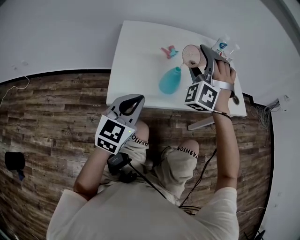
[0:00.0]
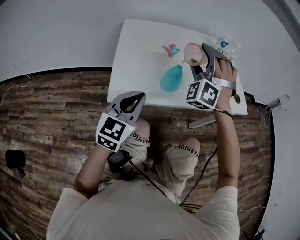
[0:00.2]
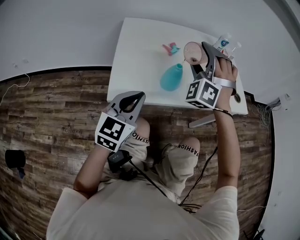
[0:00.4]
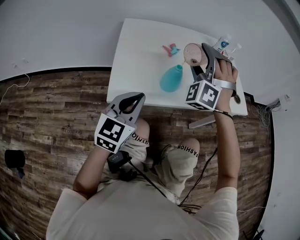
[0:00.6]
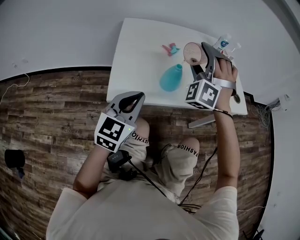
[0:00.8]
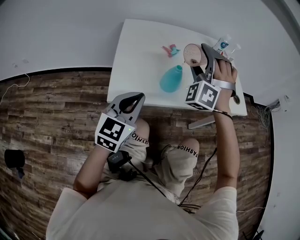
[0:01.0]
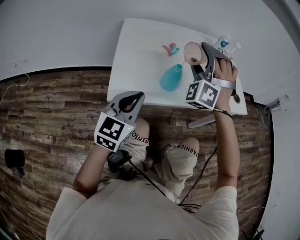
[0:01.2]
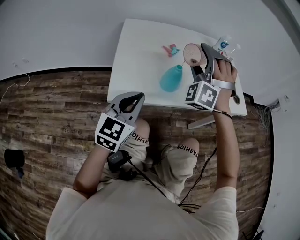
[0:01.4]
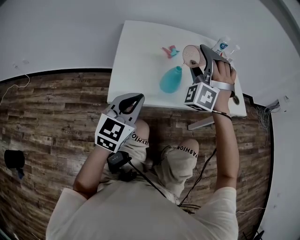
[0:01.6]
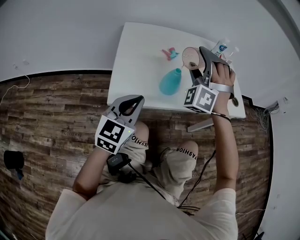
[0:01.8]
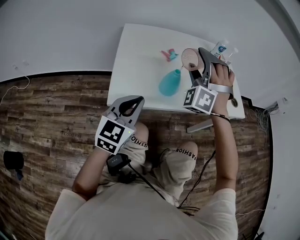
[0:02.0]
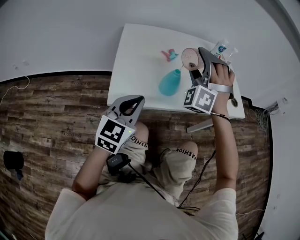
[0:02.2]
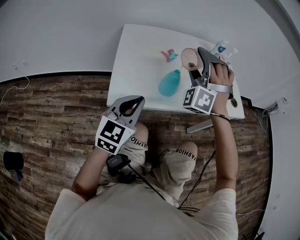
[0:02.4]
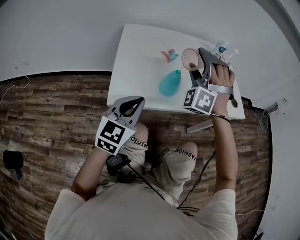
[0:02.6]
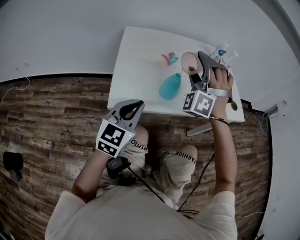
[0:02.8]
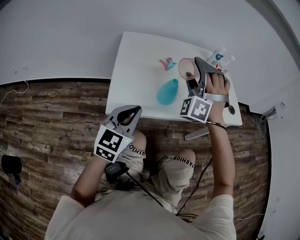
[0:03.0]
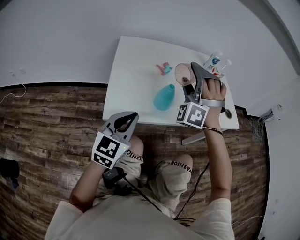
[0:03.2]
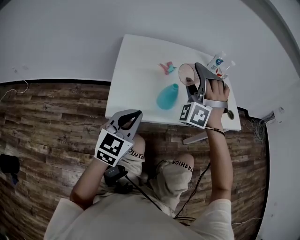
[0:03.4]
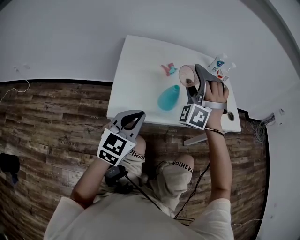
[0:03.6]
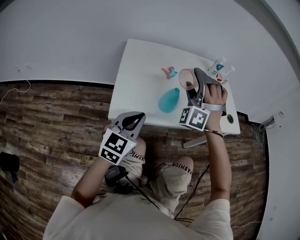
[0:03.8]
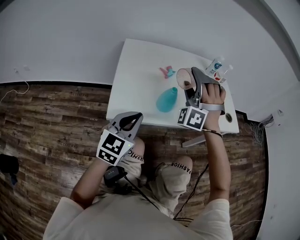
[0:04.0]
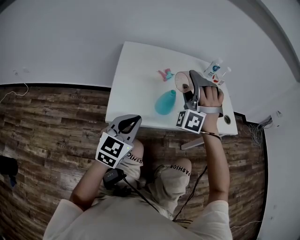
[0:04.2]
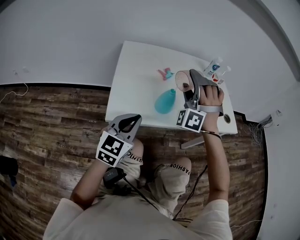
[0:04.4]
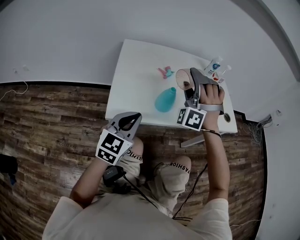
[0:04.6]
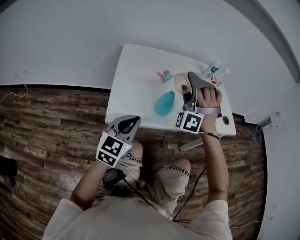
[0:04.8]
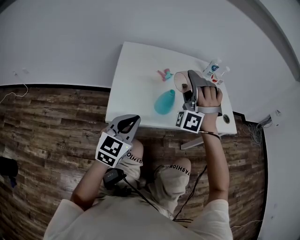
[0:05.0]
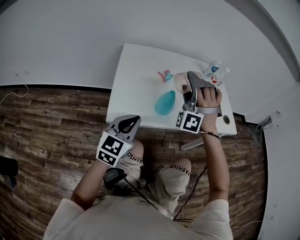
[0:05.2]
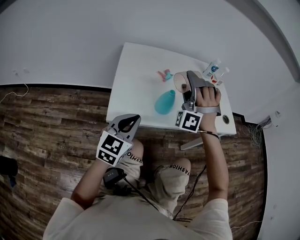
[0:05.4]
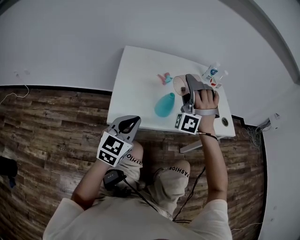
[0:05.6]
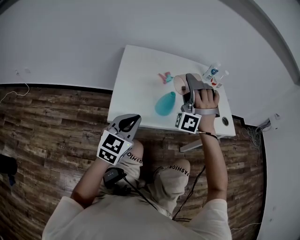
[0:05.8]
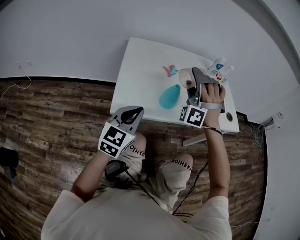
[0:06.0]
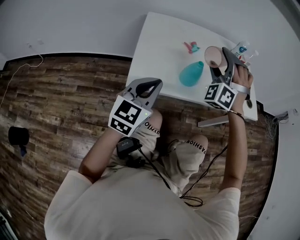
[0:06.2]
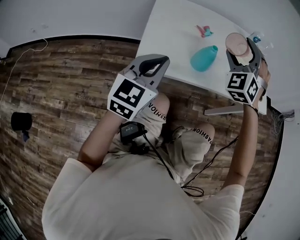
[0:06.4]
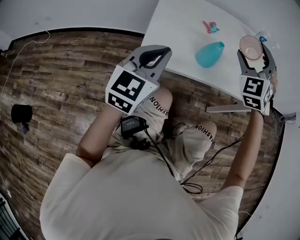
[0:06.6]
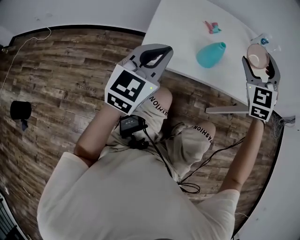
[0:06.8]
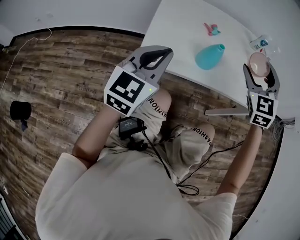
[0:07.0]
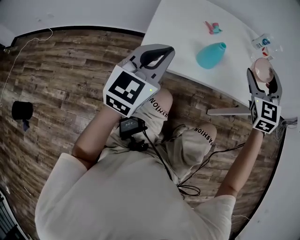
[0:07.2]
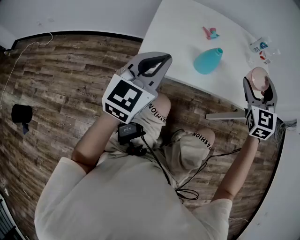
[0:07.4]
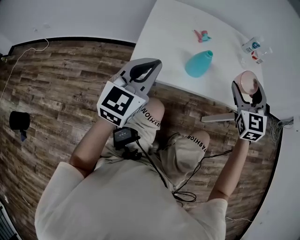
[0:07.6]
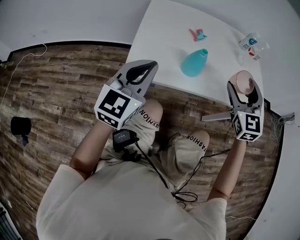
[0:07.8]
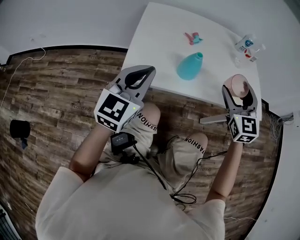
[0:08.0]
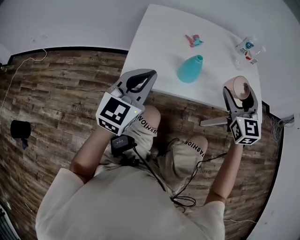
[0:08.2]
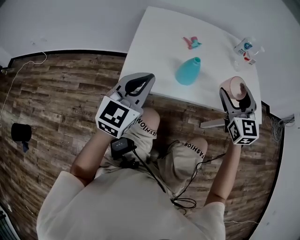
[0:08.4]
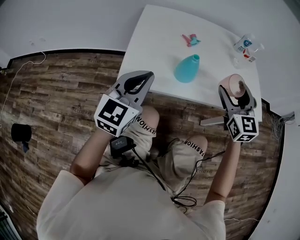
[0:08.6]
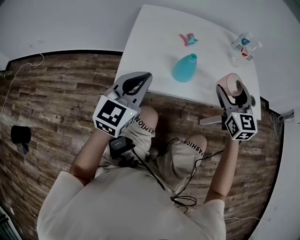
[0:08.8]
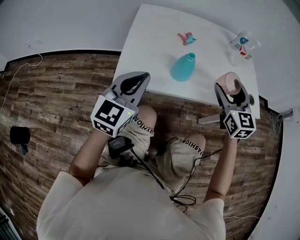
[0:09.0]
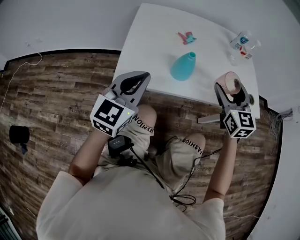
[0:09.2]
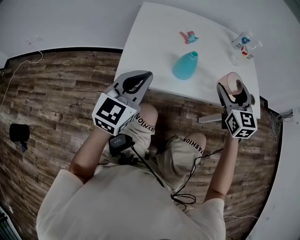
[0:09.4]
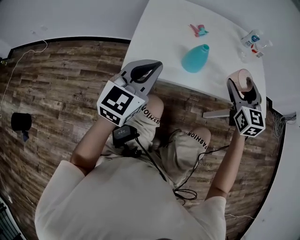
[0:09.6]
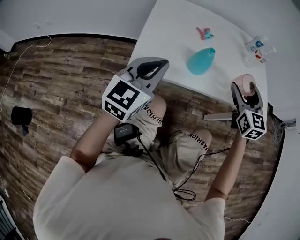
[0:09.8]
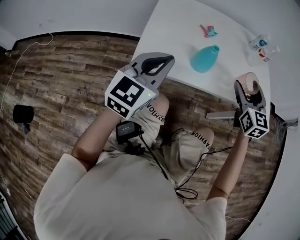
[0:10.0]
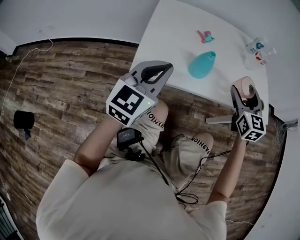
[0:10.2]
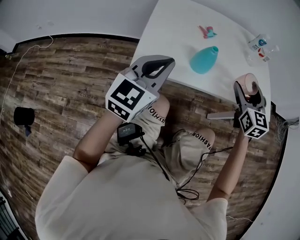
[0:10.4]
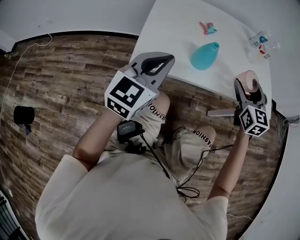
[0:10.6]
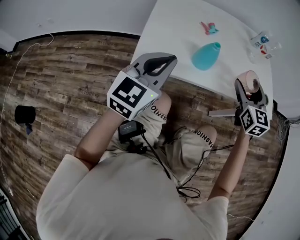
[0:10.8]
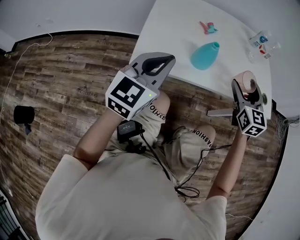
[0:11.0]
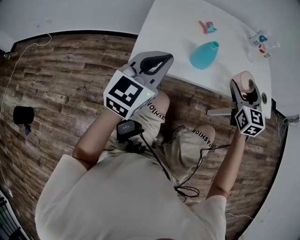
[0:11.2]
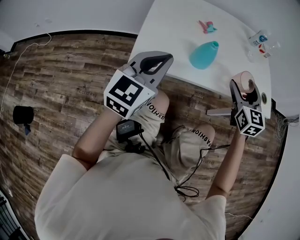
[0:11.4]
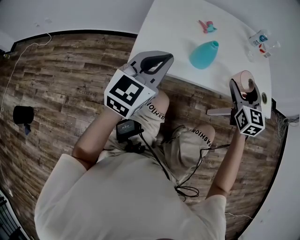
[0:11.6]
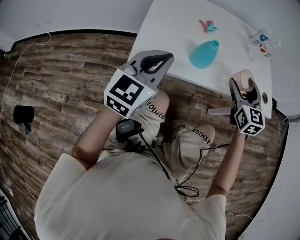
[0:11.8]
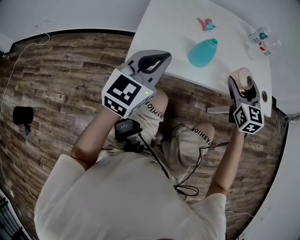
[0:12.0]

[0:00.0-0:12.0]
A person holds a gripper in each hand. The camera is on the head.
0:00.0 to 0:01.6: Neither gripper changes place.
0:01.6 to 0:03.0: Both grippers stay put.
0:03.0 to 0:06.0: The grippers stay close to where they were, moving slightly.
0:06.0 to 0:07.6: The right gripper travels to the right by some 15 cm, and twists approximately 70 degrees clockwise, seen from behind.
0:07.6 to 0:10.4: There are only small adjustments of the grippers.
0:10.4 to 0:12.0: The grippers stay close to where they were, moving slightly.

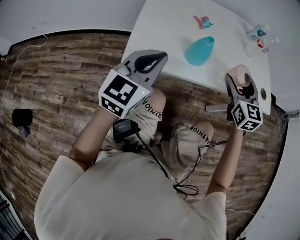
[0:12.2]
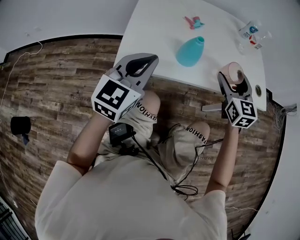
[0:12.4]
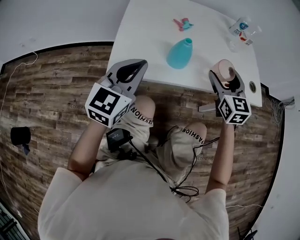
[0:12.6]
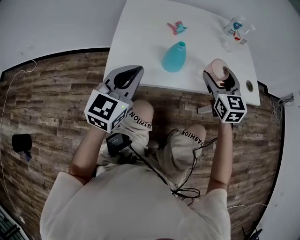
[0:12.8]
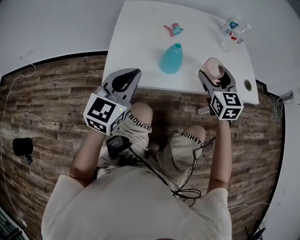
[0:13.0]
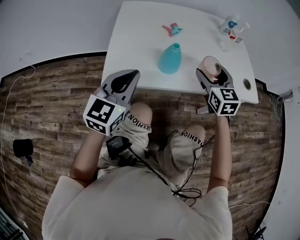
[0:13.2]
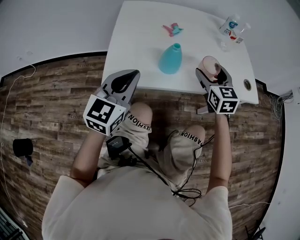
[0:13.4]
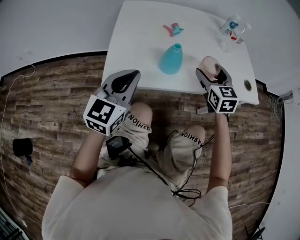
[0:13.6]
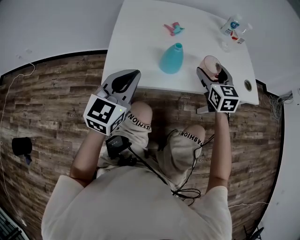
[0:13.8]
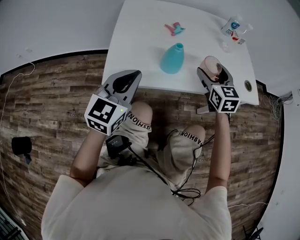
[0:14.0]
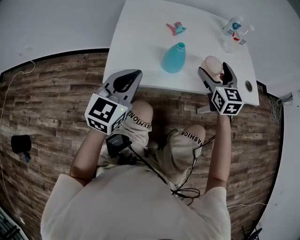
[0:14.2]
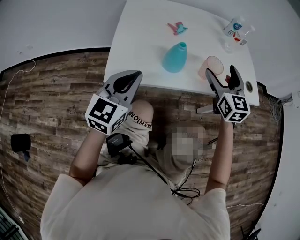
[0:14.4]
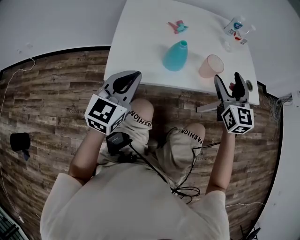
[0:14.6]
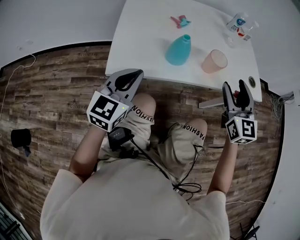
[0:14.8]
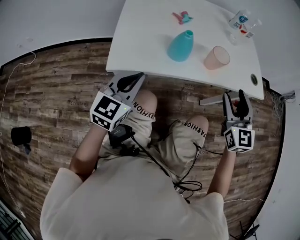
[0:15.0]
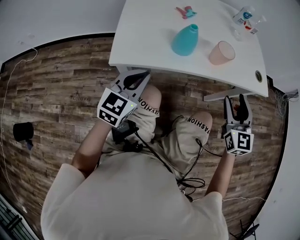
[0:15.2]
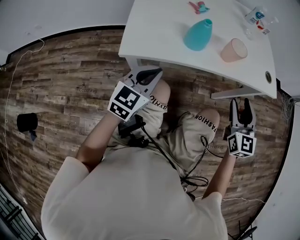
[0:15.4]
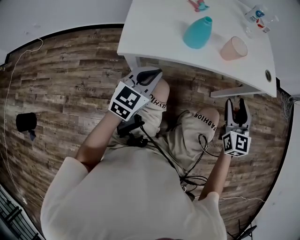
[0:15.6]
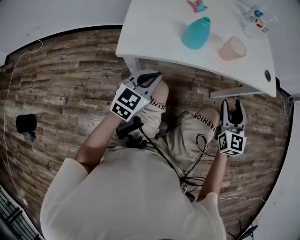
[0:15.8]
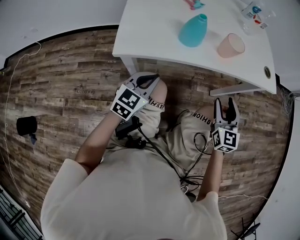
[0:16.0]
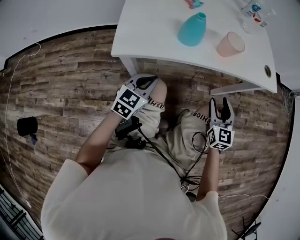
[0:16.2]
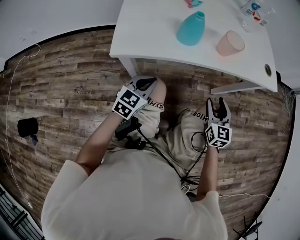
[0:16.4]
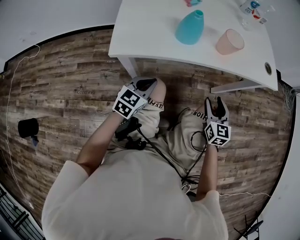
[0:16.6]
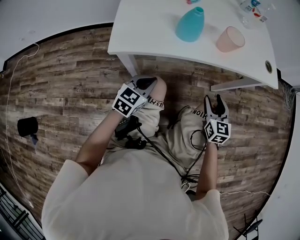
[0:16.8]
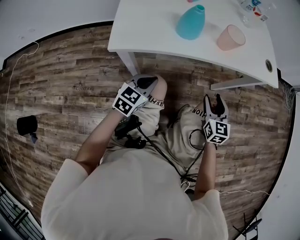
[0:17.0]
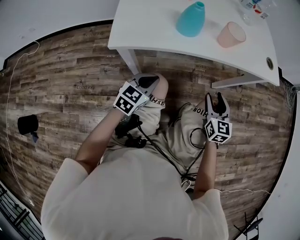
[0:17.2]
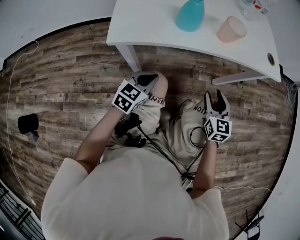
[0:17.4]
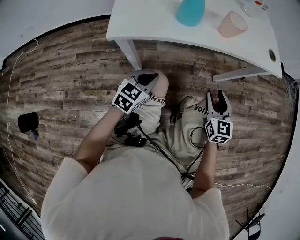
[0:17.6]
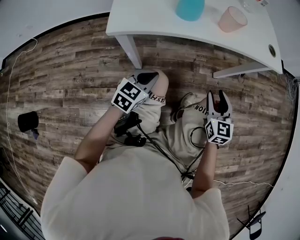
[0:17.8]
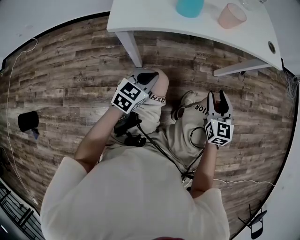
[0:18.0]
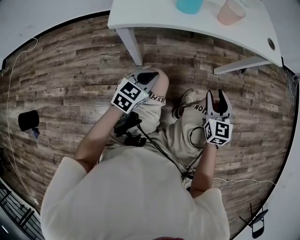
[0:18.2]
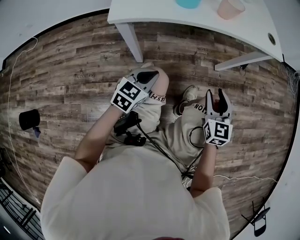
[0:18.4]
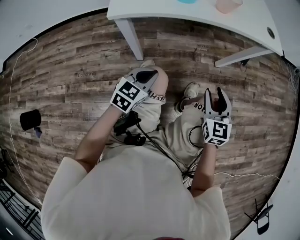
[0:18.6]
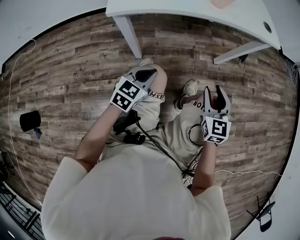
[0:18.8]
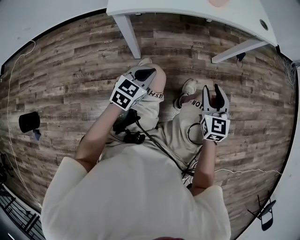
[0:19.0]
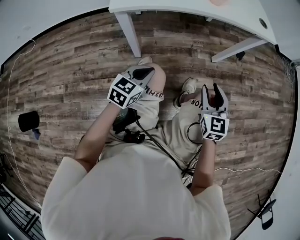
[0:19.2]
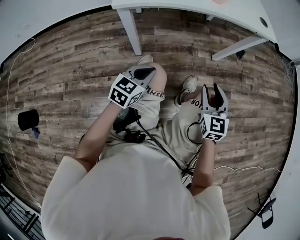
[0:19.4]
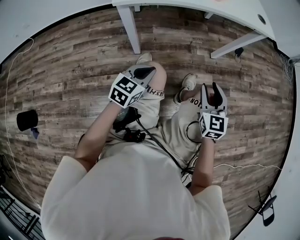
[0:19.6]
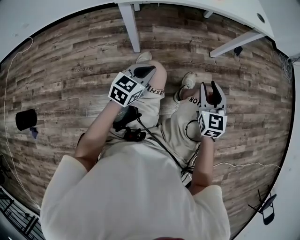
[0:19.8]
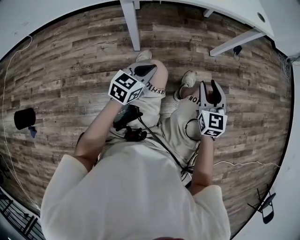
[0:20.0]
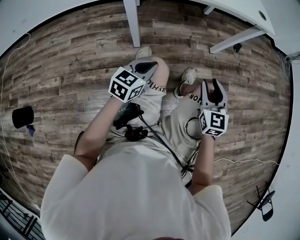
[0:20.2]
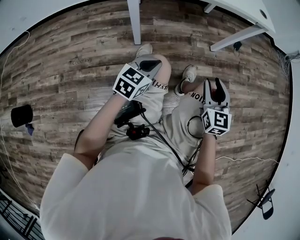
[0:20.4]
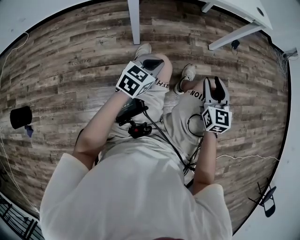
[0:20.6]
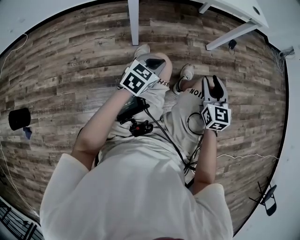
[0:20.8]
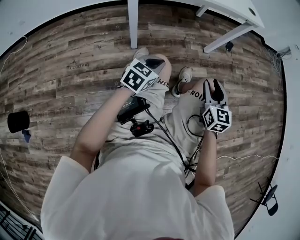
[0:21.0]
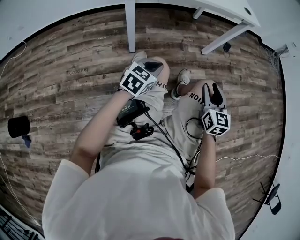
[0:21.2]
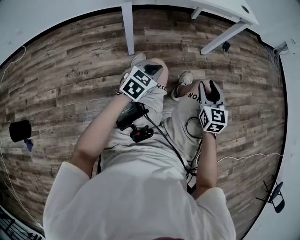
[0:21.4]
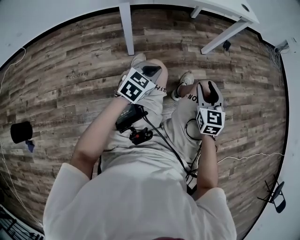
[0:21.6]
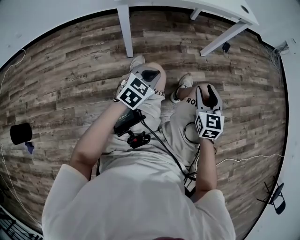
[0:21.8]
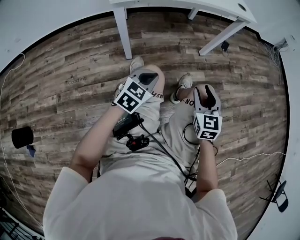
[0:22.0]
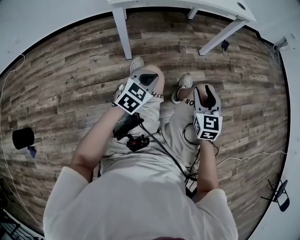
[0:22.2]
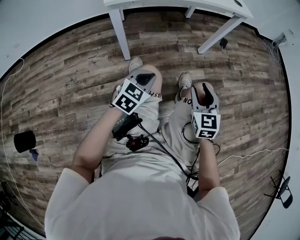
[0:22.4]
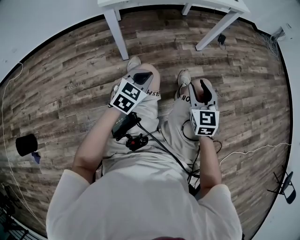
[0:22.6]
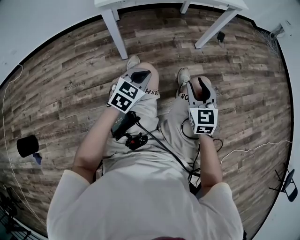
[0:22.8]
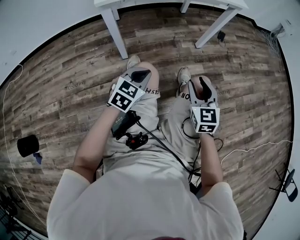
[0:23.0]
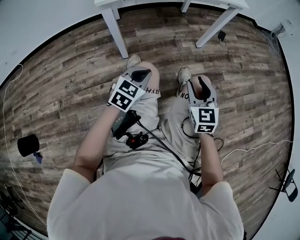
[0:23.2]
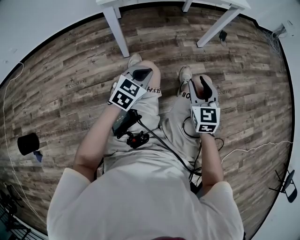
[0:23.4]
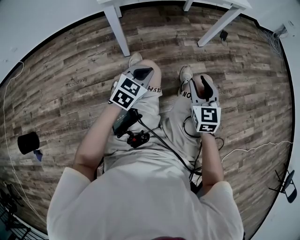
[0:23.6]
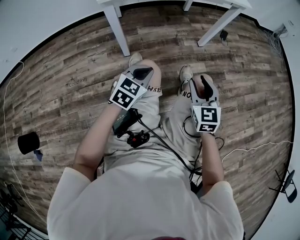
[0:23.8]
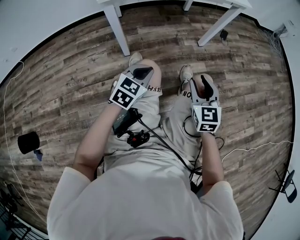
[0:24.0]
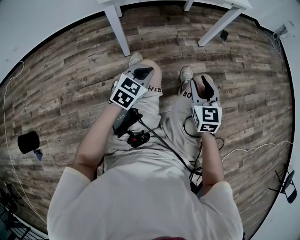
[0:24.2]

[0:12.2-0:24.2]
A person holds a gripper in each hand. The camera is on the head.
0:12.2 to 0:13.8: The right gripper moves roughly 5 cm.
0:13.8 to 0:15.2: The left gripper moves downward, about 10 cm. The right gripper heads backward and to the right, covering approximately 20 cm.
0:15.2 to 0:16.6: Both grippers move downward, about 15 cm.
0:16.6 to 0:18.2: Both grippers travel together backward, about 10 cm.
0:18.2 to 0:19.8: The grippers both shift backward by about 15 cm.
0:19.8 to 0:21.2: The left gripper is displaced backward by roughly 5 cm. The right gripper goes roughly 10 cm backward.
0:21.2 to 0:22.6: The grippers make only small movements.
0:22.6 to 0:24.2: Both grippers stay put.
